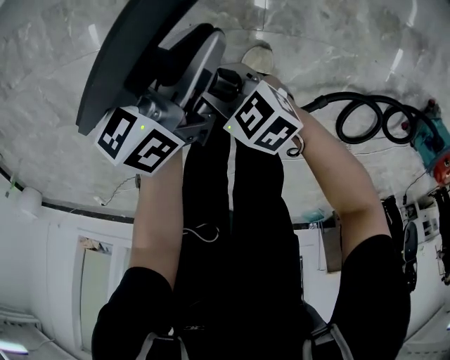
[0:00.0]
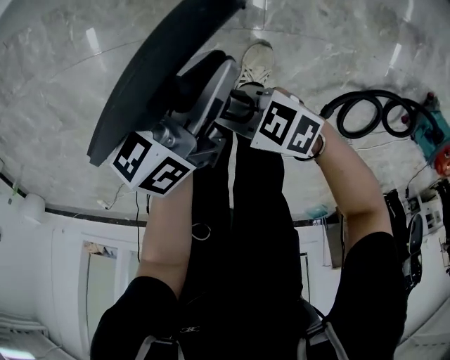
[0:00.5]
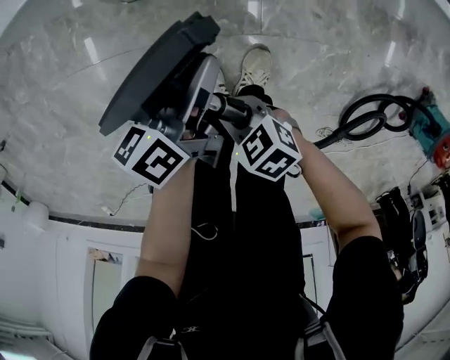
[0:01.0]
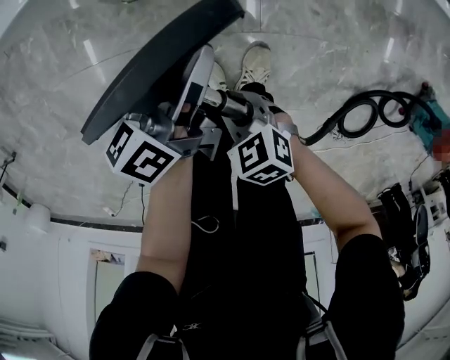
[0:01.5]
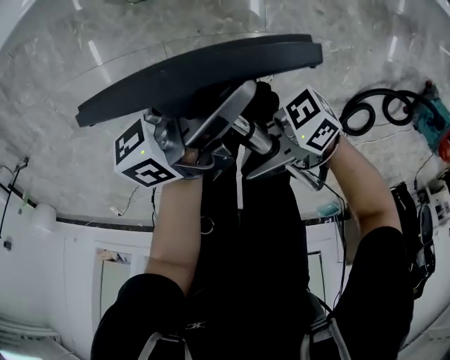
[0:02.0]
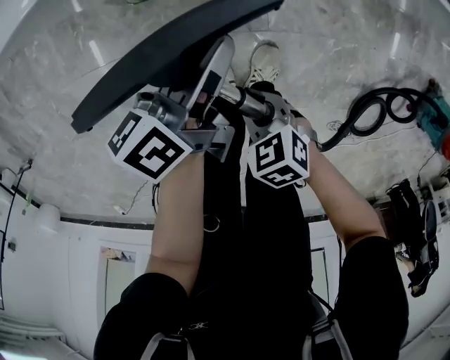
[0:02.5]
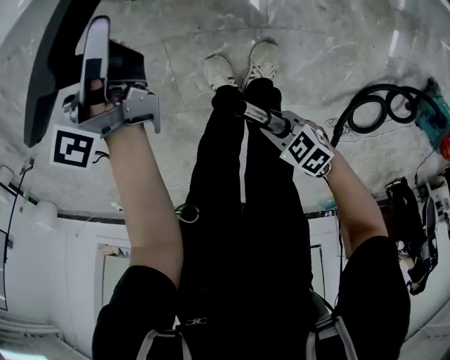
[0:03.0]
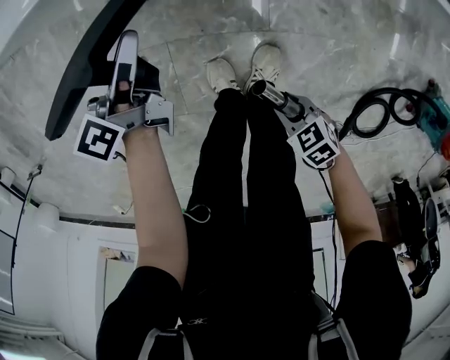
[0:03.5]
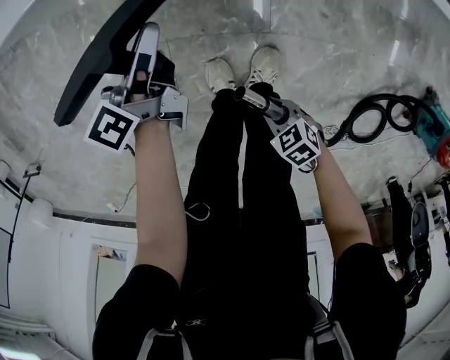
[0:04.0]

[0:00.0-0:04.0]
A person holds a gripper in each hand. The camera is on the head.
0:00.0 to 0:02.0: The left gripper travels upward by roughly 10 cm, and swivels roughly 30 degrees. The right gripper shifts roughly 20 cm upward, and points its fingers about 60 degrees further upward.
0:02.0 to 0:04.0: The left gripper moves some 20 cm, and turns by some 30 degrees, while the right gripper shifts some 25 cm downward, and tips its fingers downward by approximately 80 degrees.

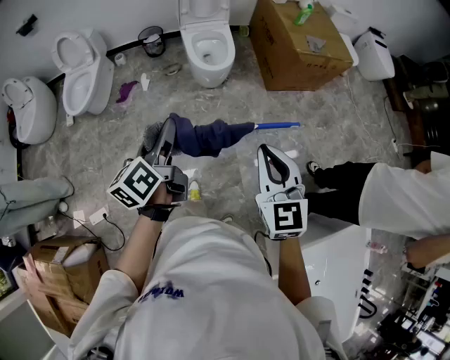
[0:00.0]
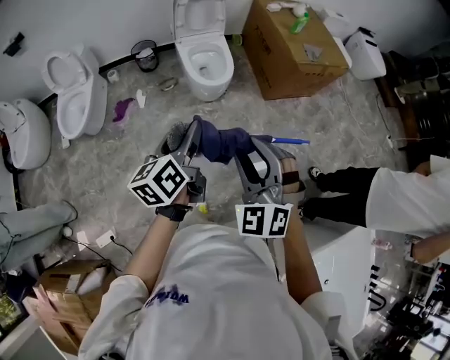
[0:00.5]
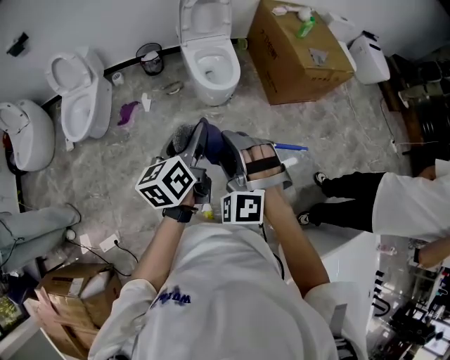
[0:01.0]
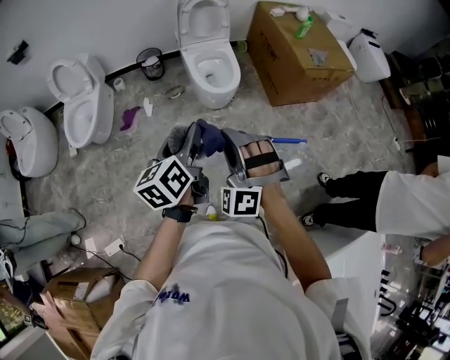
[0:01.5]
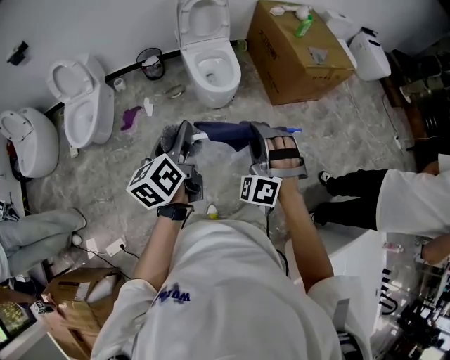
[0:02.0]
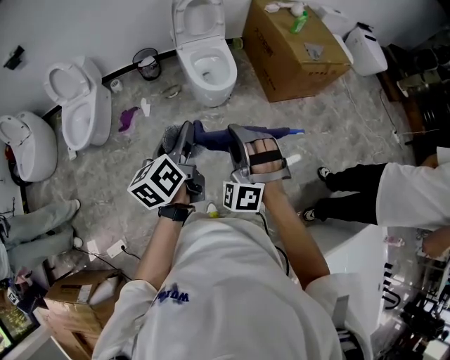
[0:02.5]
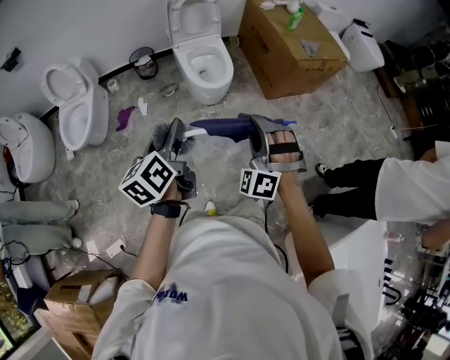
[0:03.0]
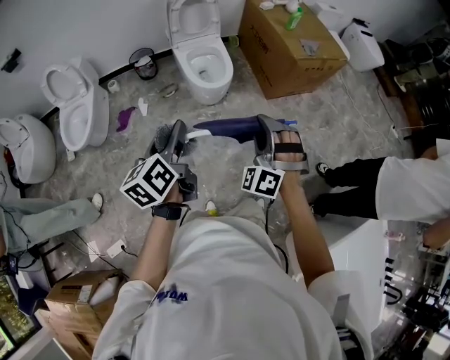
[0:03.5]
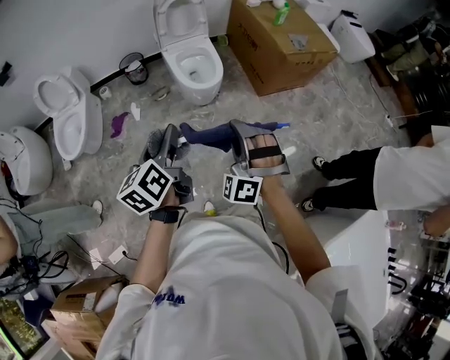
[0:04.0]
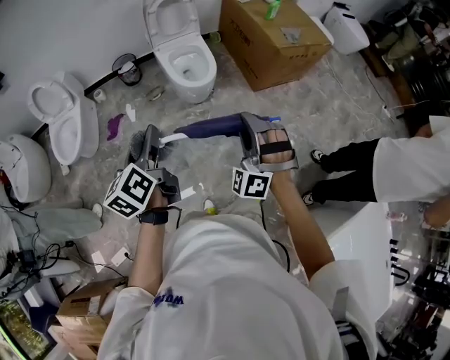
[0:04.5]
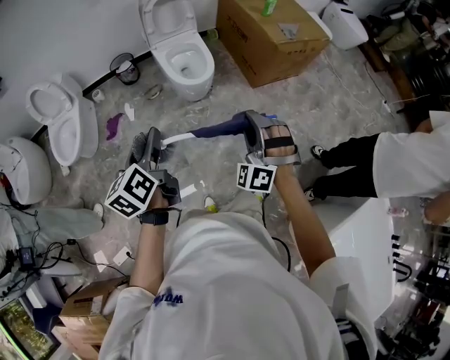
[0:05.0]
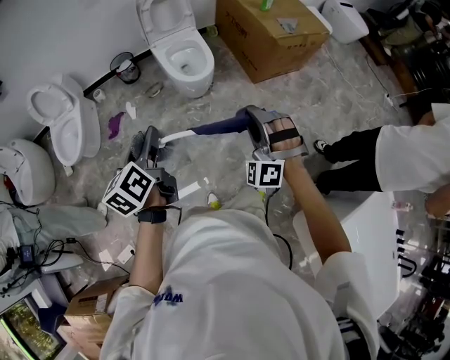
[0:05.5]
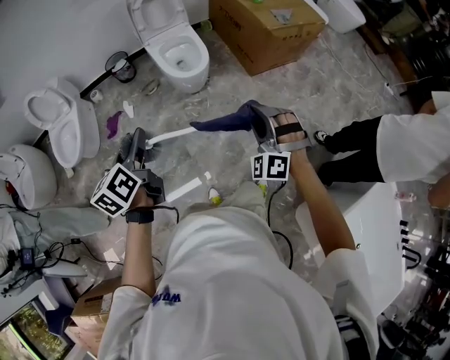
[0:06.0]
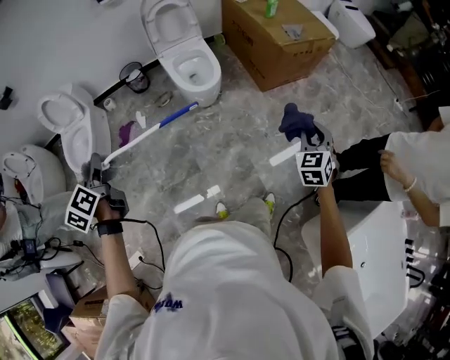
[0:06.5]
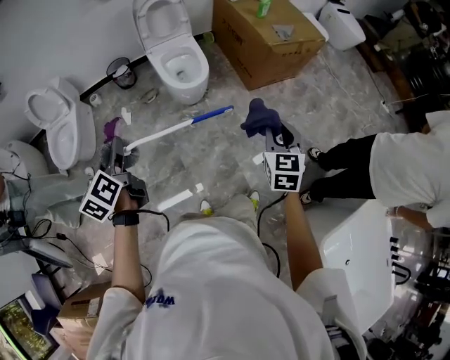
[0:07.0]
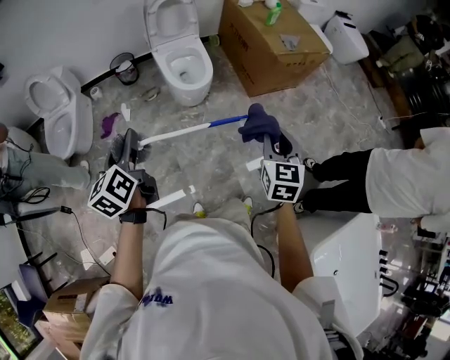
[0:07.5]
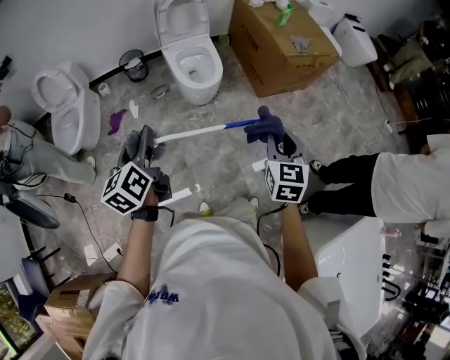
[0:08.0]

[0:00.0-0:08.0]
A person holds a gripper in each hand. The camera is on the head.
0:00.0 to 0:02.0: The left gripper is displaced forward and to the left by some 10 cm. Meanwhile the right gripper heads forward, to the left and downward, covering approximately 20 cm, rolls counterclockwise, seen from behind, by some 60 degrees, and opens its fingers.
0:02.0 to 0:04.0: The right gripper goes left and right, roughly 10 cm each way, reversing 2 times.
0:04.0 to 0:06.0: The right gripper heads to the right, covering approximately 10 cm.
0:06.0 to 0:08.0: The right gripper goes to the right and returns, approximately 15 cm each way, and rotates around the line of its fingers by approximately 70 degrees, clockwise from behind. Meanwhile the left gripper moves approximately 15 cm to the left and comes back.

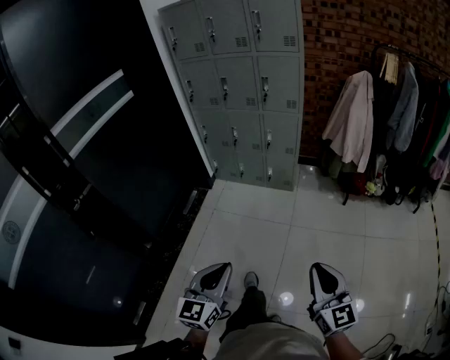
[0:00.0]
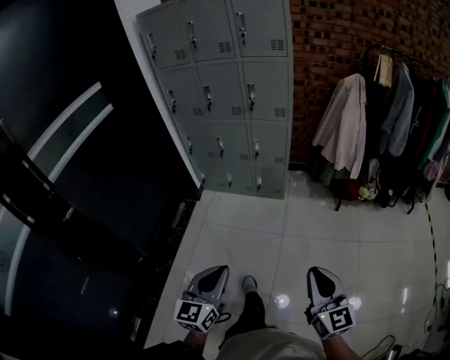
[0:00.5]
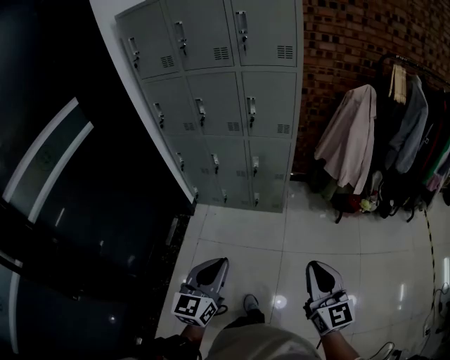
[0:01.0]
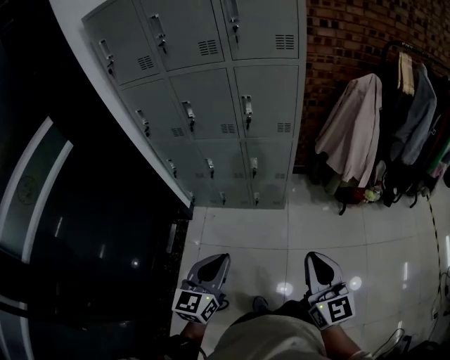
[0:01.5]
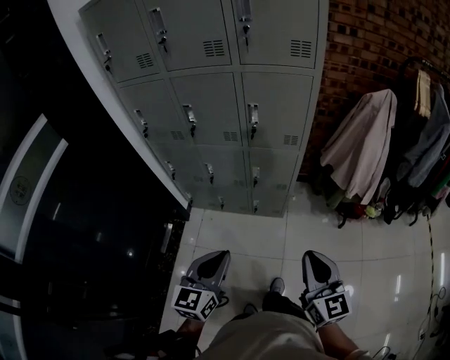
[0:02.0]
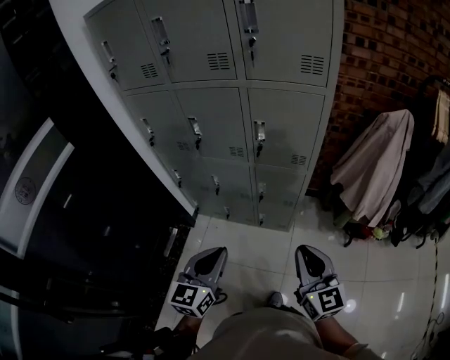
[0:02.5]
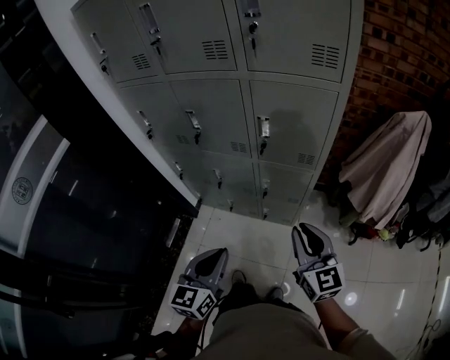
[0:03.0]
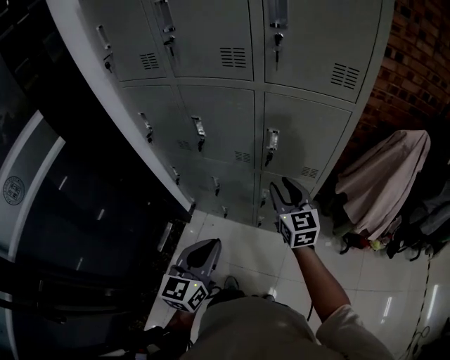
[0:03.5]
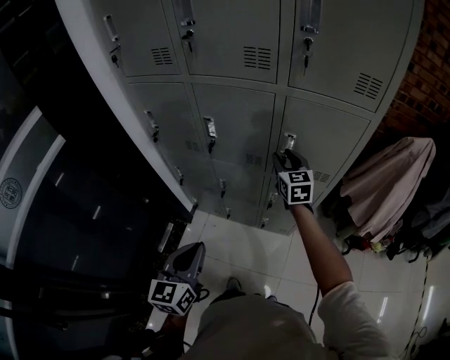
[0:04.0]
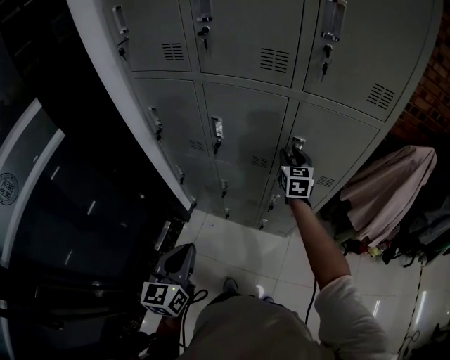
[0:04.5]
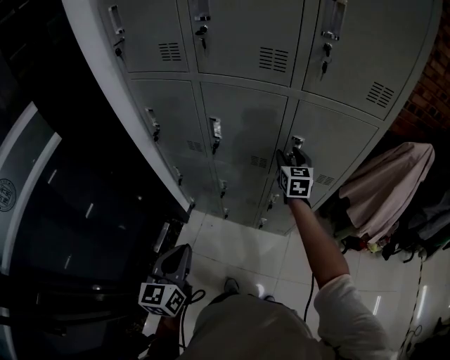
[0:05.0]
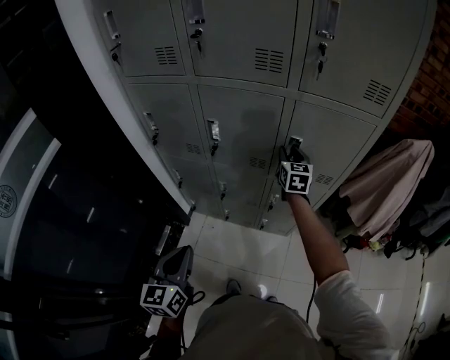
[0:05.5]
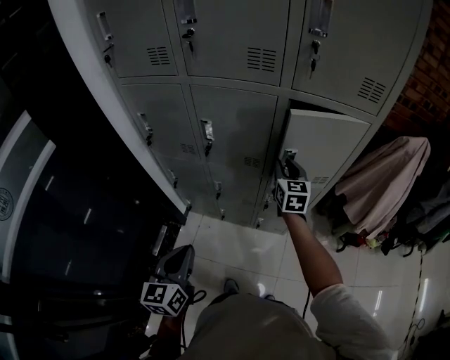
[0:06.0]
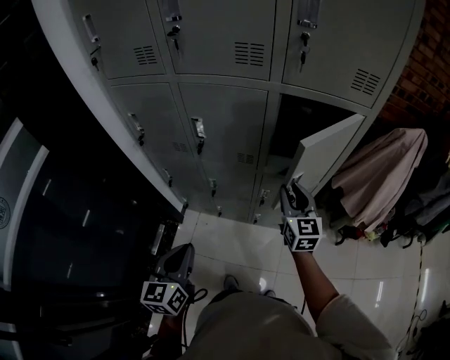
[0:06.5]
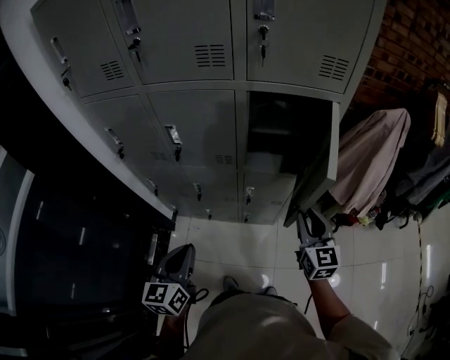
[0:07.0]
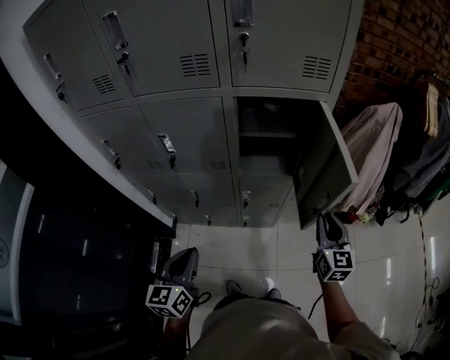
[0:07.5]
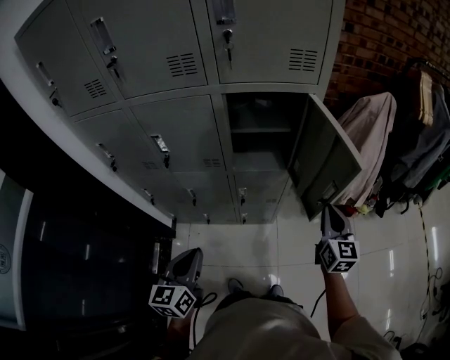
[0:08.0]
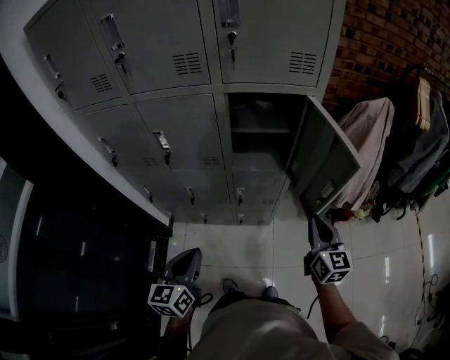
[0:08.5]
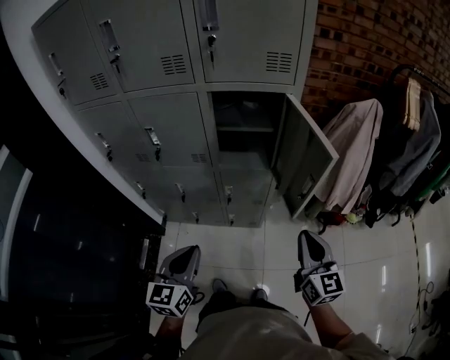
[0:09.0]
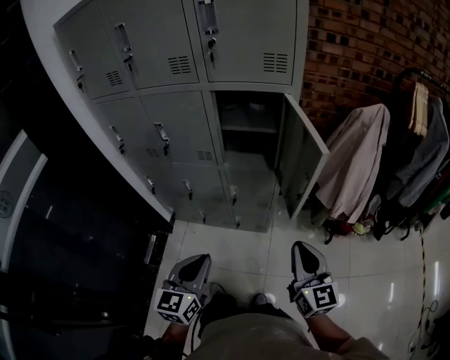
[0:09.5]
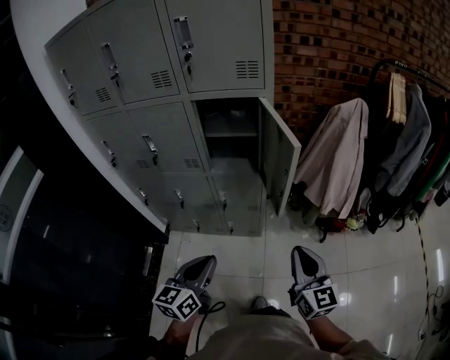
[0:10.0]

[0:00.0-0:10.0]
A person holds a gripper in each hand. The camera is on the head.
0:00.0 to 0:02.0: The two grippers travel together, forward, roughly 60 cm.
0:02.0 to 0:04.0: The left gripper goes roughly 20 cm forward and to the left, while the right gripper travels forward by about 50 cm, and opens up.
0:04.0 to 0:06.0: The left gripper ends up some 5 cm from where it was.
0:06.0 to 0:08.0: The left gripper goes some 10 cm to the right. The right gripper shifts roughly 35 cm to the right and backward, and closes up.
0:08.0 to 0:10.0: The right gripper travels backward by roughly 25 cm, while the left gripper is displaced to the right and backward by approximately 25 cm.

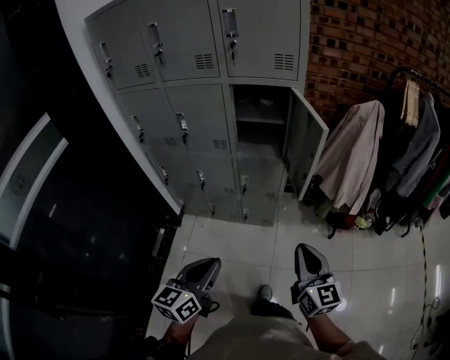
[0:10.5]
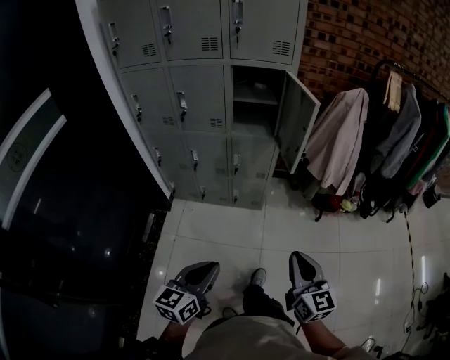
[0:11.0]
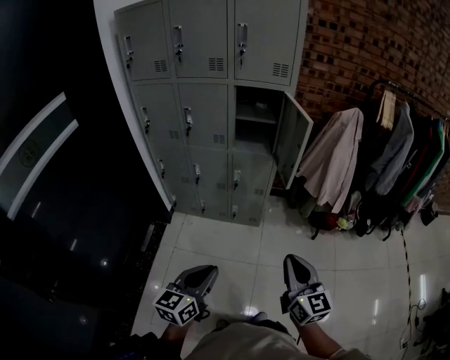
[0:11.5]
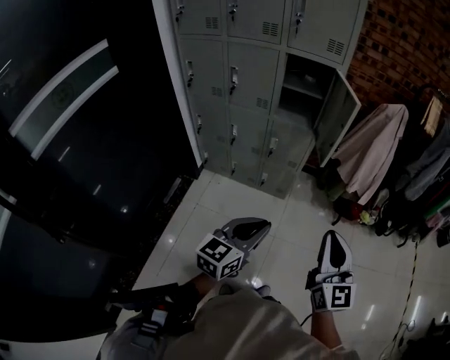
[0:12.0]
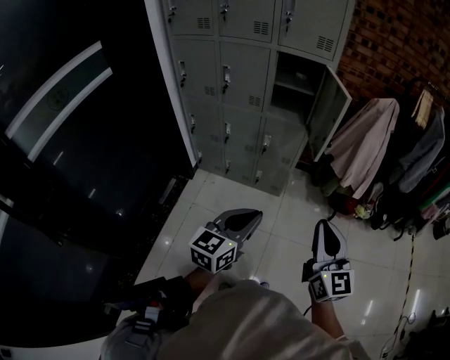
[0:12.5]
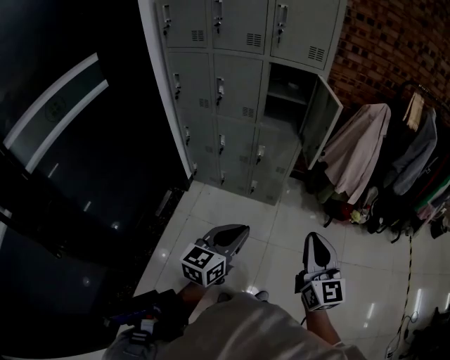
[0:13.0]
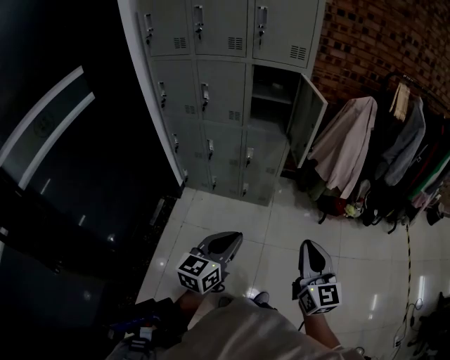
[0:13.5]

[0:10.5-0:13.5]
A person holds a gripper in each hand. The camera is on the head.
0:10.5 to 0:12.0: The left gripper shifts roughly 10 cm backward and to the right, while the right gripper shifts some 20 cm backward and upward.
0:12.0 to 0:13.5: The two grippers go approximately 5 cm backward.

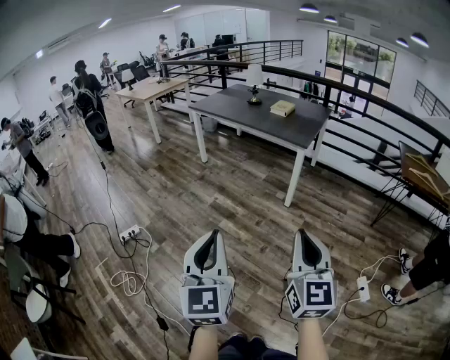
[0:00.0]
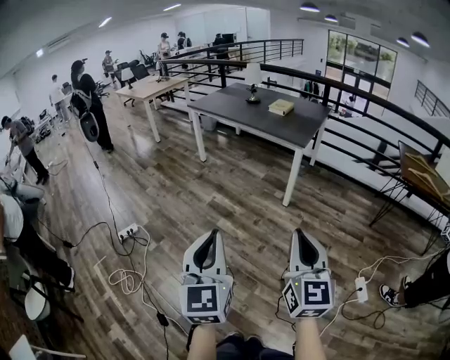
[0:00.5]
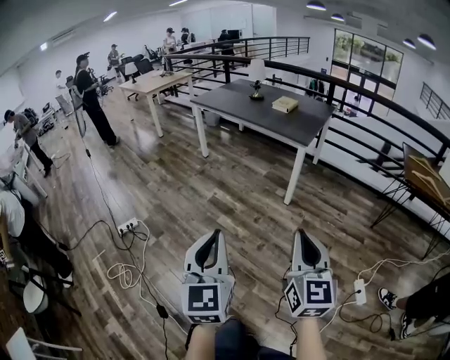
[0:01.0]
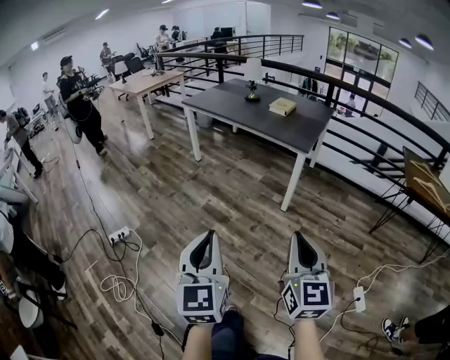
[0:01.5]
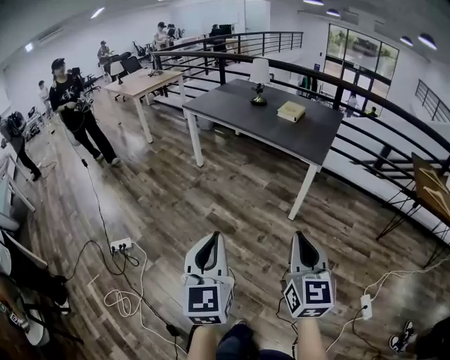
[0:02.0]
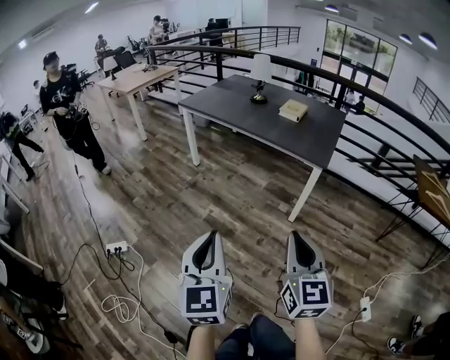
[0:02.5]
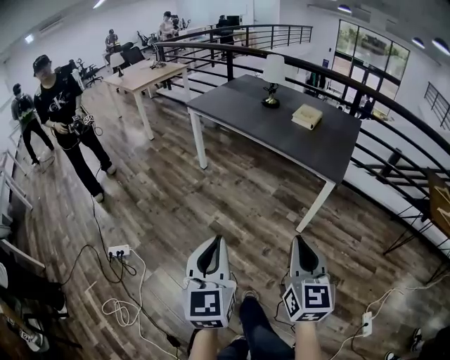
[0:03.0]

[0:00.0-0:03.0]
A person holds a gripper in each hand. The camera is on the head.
0:00.0 to 0:01.5: The two grippers go about 10 cm forward.
0:01.5 to 0:03.0: The two grippers go approximately 30 cm forward.
